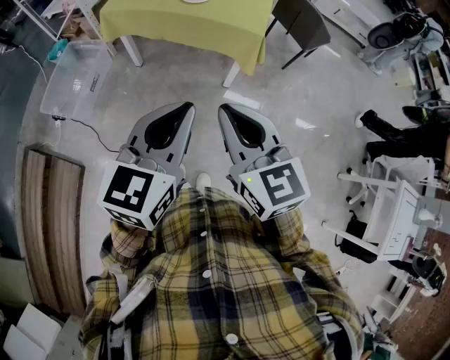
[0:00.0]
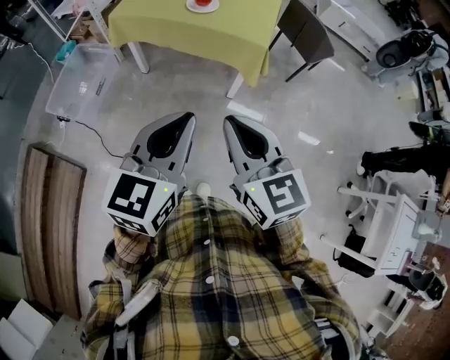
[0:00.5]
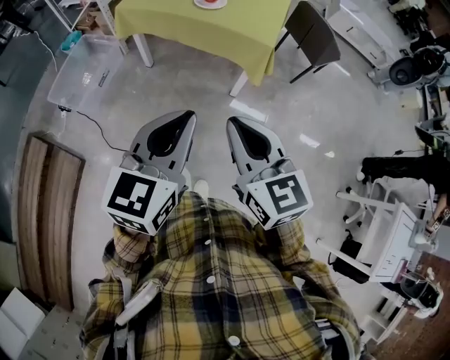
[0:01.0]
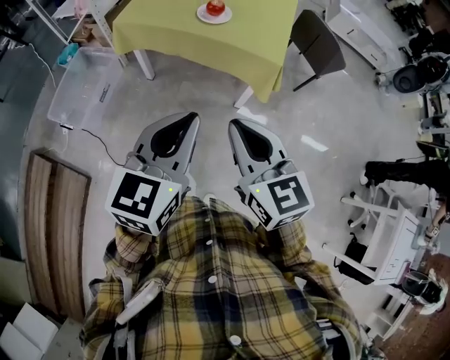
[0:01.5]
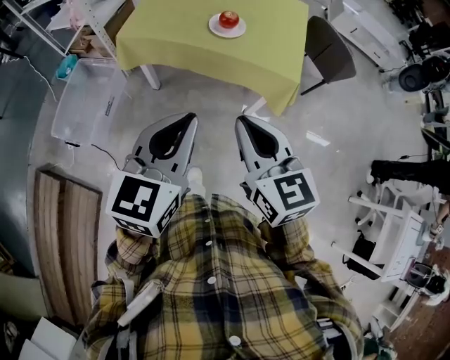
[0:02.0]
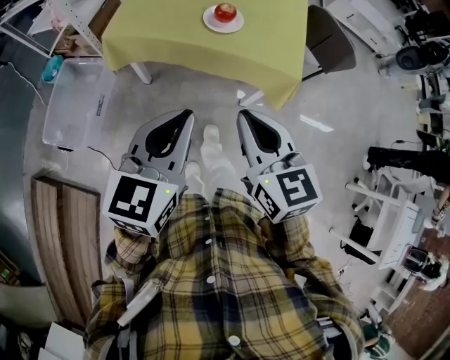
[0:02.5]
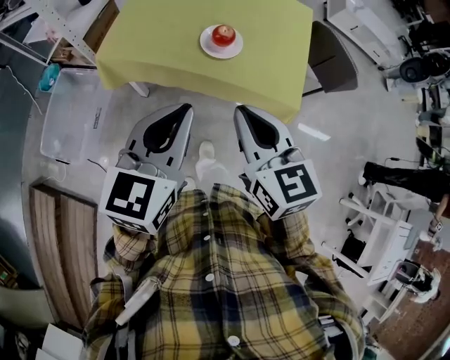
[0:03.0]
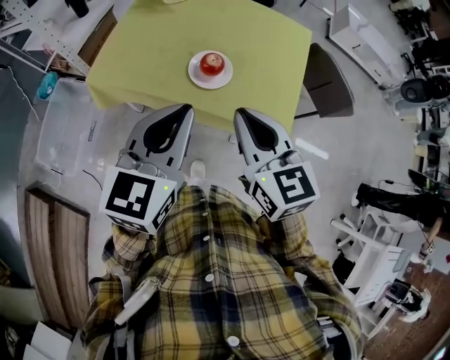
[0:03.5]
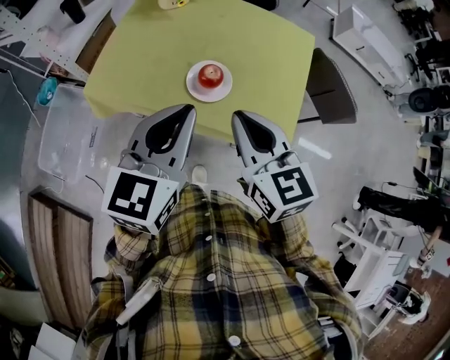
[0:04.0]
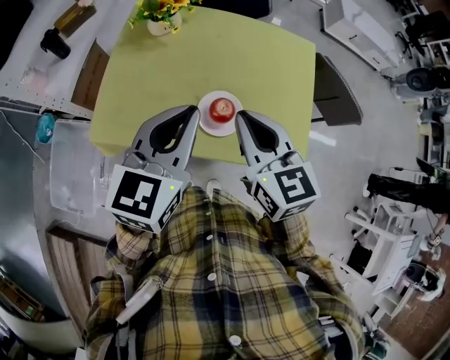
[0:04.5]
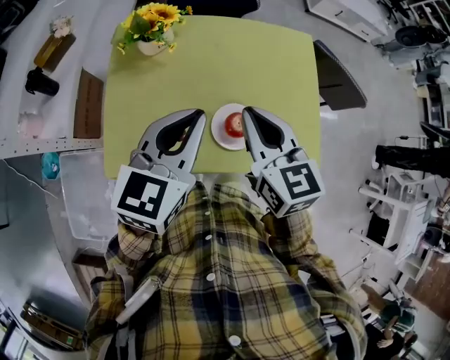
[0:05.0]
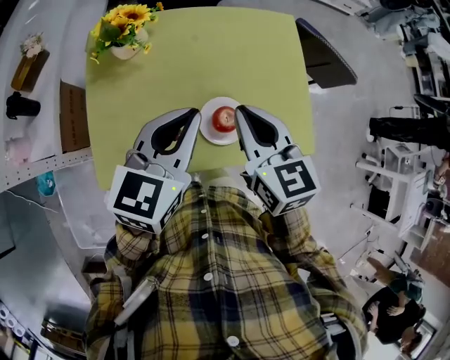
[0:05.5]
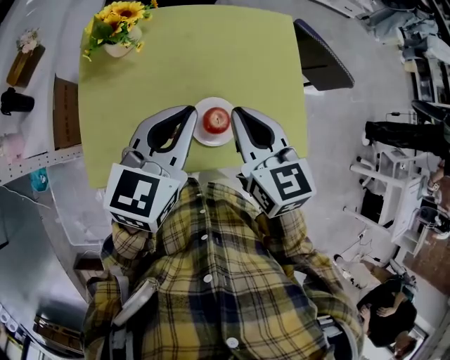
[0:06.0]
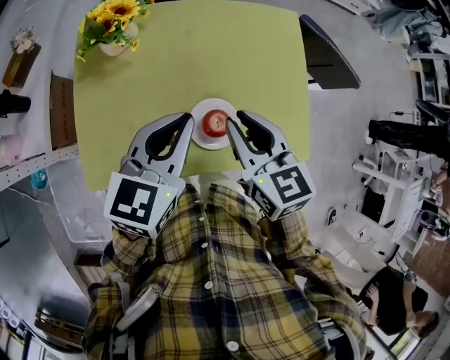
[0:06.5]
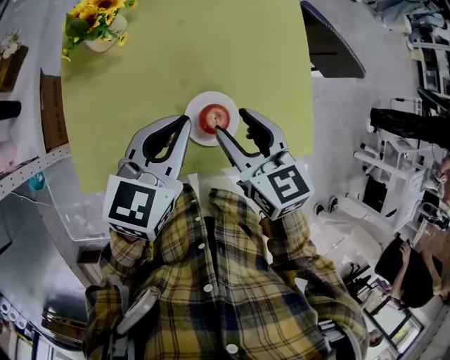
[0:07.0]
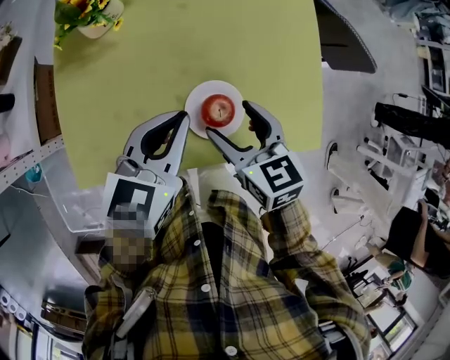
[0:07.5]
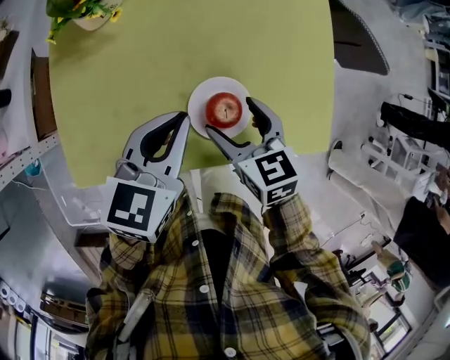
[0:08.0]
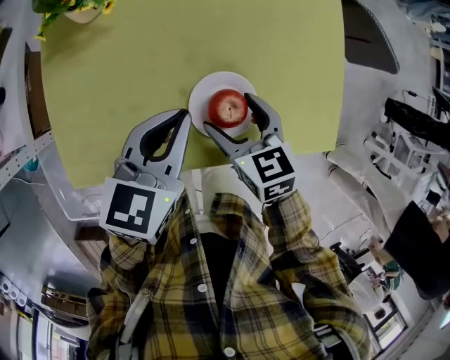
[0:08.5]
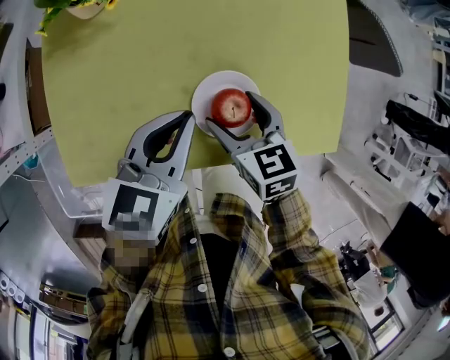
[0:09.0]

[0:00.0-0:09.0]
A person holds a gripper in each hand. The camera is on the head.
0:00.0 to 0:02.0: The two grippers go about 25 cm forward and to the left.
0:02.0 to 0:04.5: Both grippers are carried forward, roughly 50 cm.
0:04.5 to 0:07.0: The grippers both shift downward and forward by roughly 15 cm. The left gripper changes its angle by approximately 20 degrees; the right gripper opens up.
0:07.0 to 0:09.0: The right gripper shifts about 15 cm downward, and opens. The left gripper shifts roughly 10 cm downward.

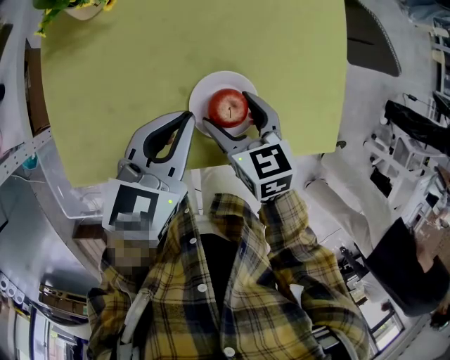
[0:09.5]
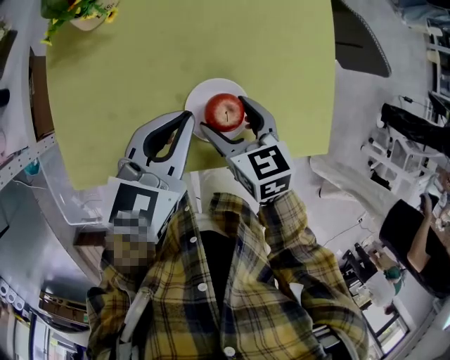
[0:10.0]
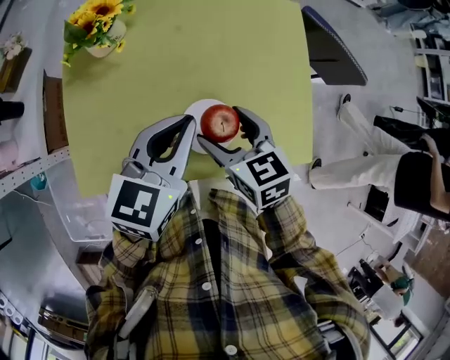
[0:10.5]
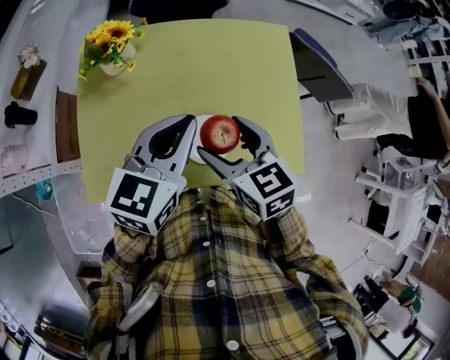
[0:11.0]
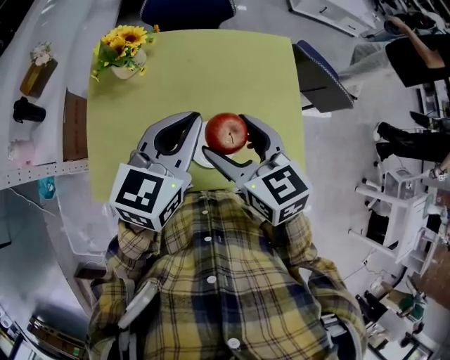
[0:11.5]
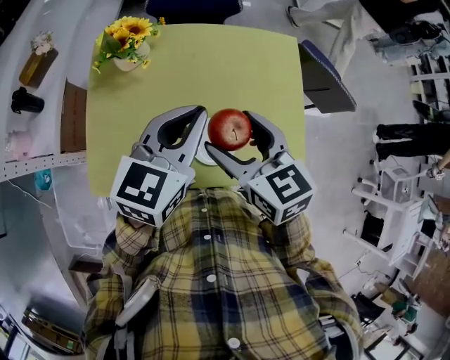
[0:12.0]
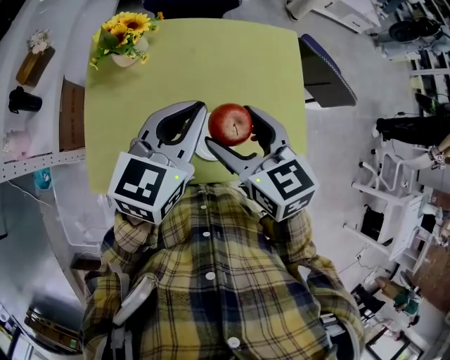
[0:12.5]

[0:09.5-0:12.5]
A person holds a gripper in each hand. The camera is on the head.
0:09.5 to 0:11.0: Both grippers move upward, roughly 15 cm.
0:11.0 to 0:12.5: The right gripper shifts roughly 5 cm upward.

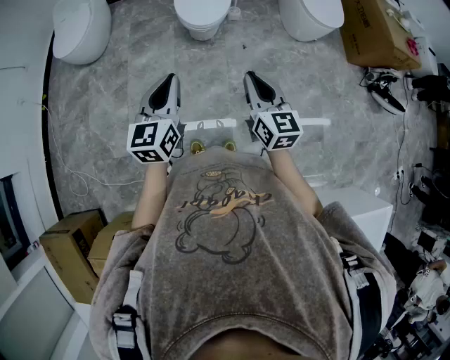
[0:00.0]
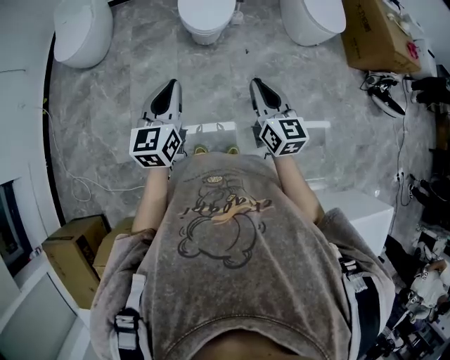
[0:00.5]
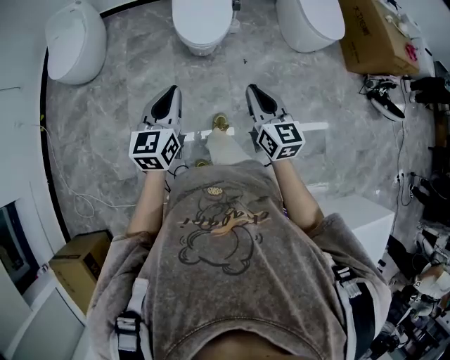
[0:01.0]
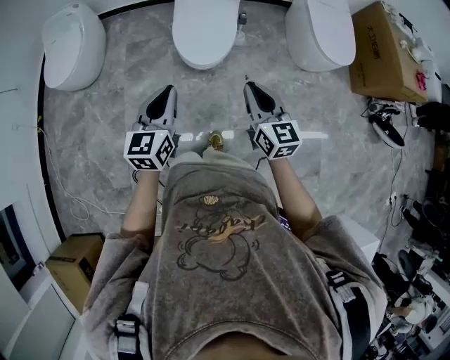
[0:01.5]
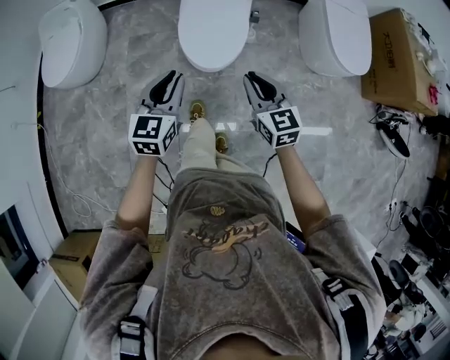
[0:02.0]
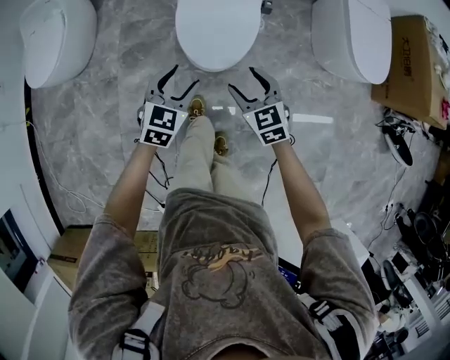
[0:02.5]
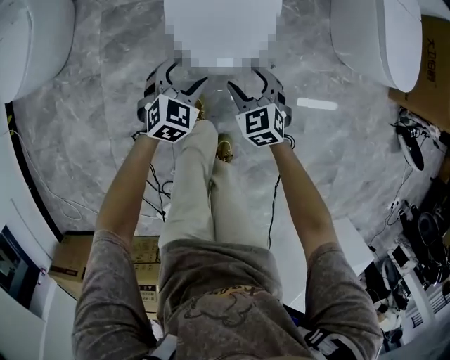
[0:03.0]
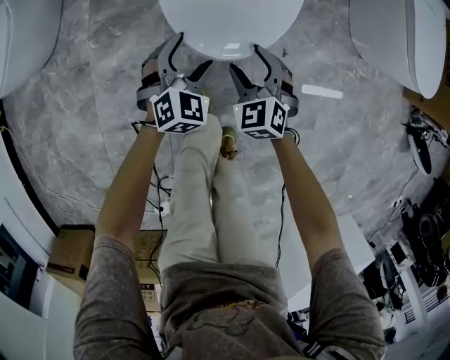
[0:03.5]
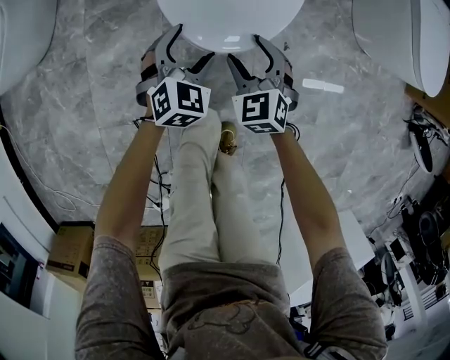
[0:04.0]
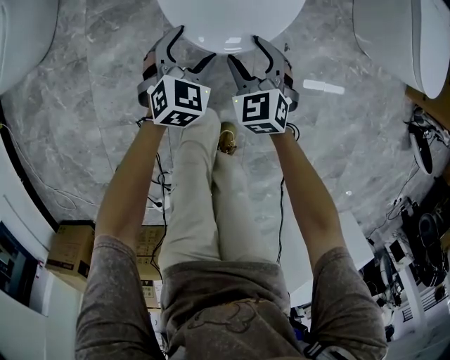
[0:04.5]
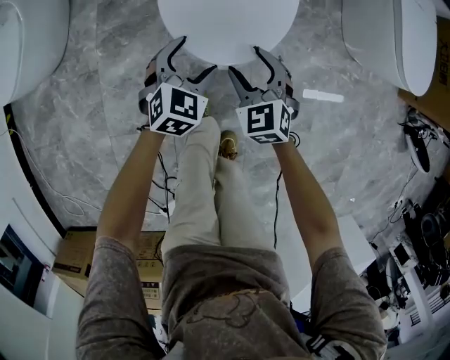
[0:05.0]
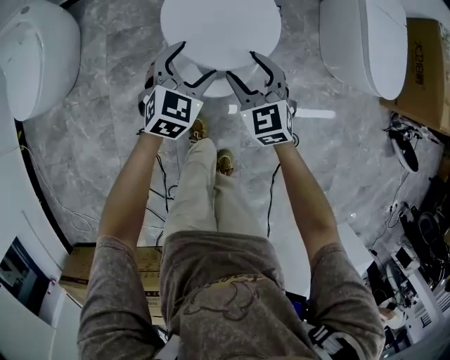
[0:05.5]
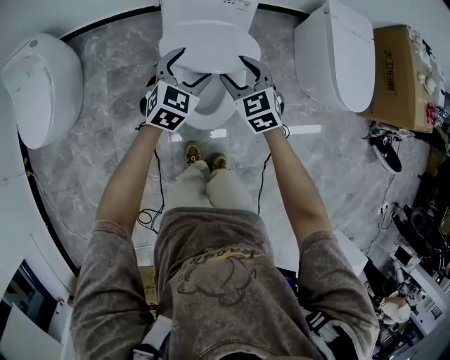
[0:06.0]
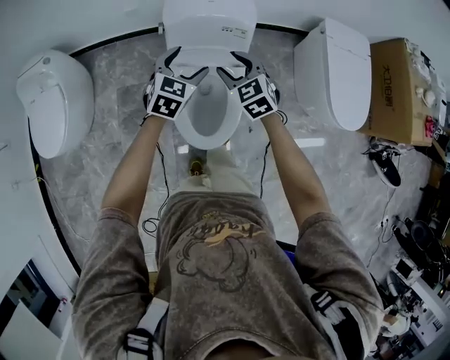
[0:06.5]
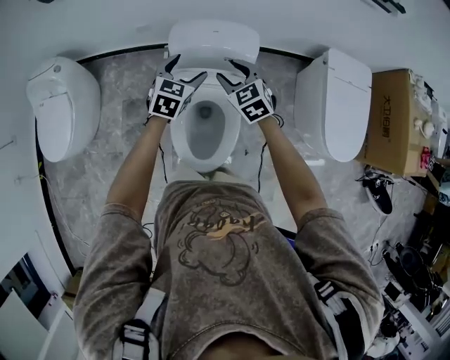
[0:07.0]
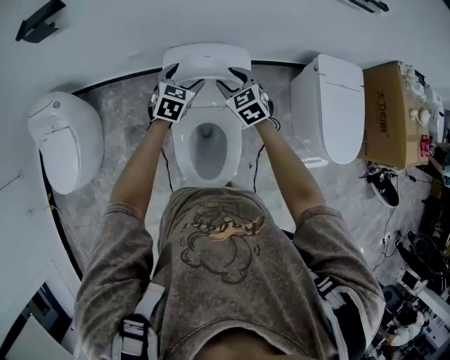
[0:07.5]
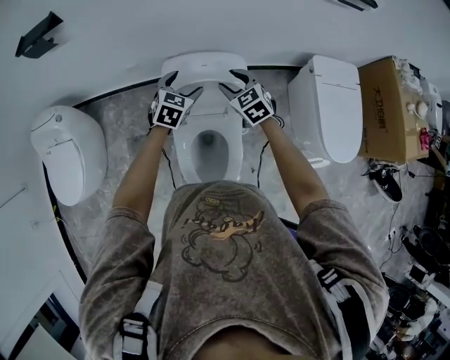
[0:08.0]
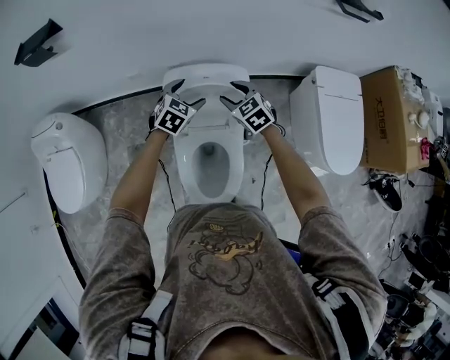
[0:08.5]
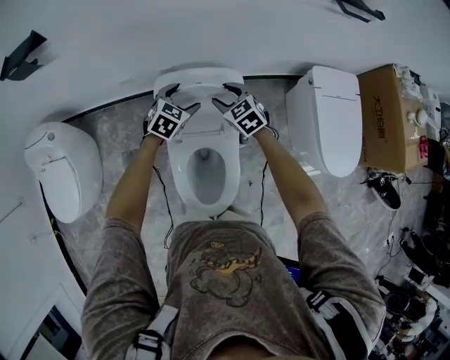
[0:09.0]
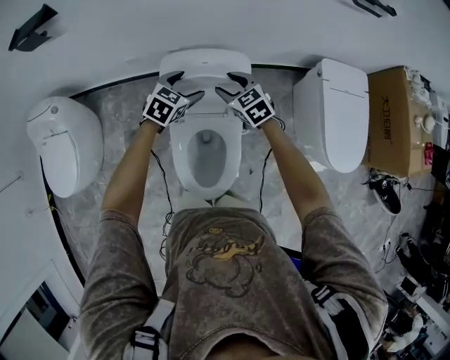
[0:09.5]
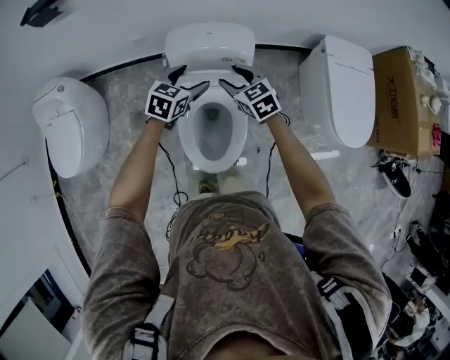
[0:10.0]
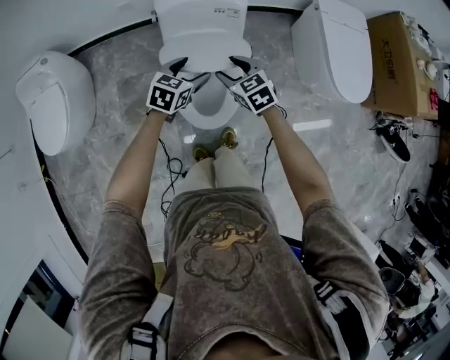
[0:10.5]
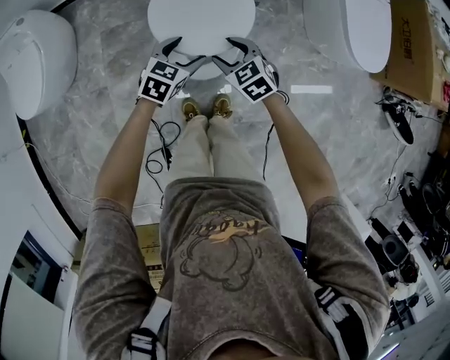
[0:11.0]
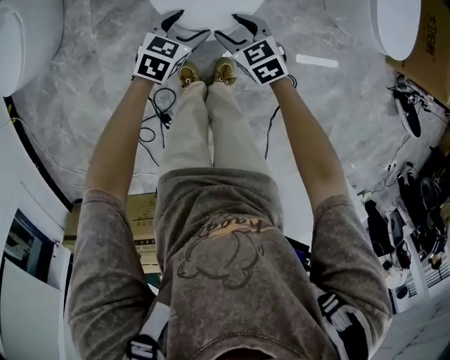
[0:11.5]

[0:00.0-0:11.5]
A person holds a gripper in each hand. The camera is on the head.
0:00.0 to 0:02.0: Both grippers move forward, roughly 40 cm.
0:02.0 to 0:04.0: The two grippers go roughly 50 cm downward. The left gripper changes its angle by approximately 30 degrees, and opens; the right gripper turns by some 30 degrees, and opens its fingers.
0:04.0 to 0:06.0: Both grippers move upward and forward, some 40 cm.
0:06.0 to 0:07.5: Both grippers move forward, approximately 25 cm.
0:09.5 to 0:11.5: The two grippers travel together, backward, roughly 40 cm. Both grippers travel together downward, about 25 cm.

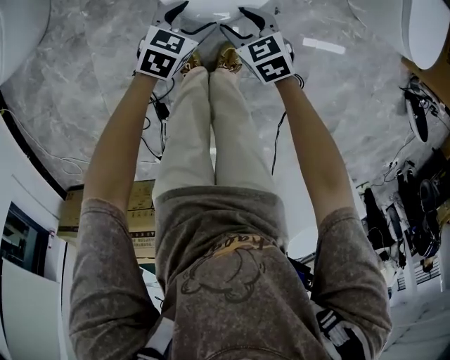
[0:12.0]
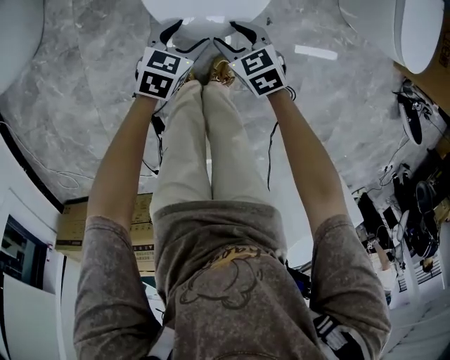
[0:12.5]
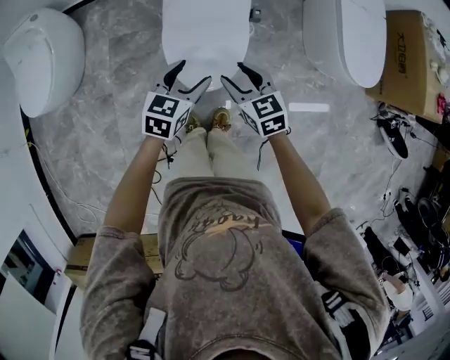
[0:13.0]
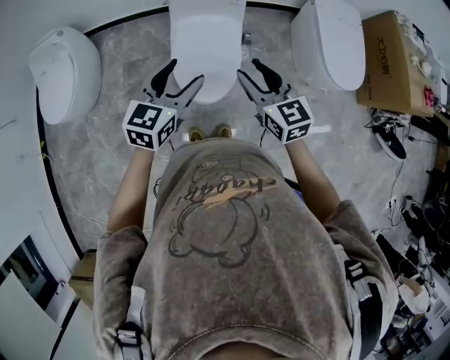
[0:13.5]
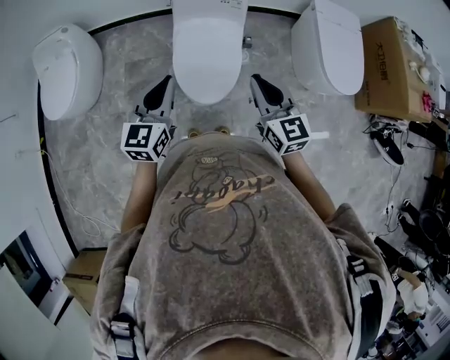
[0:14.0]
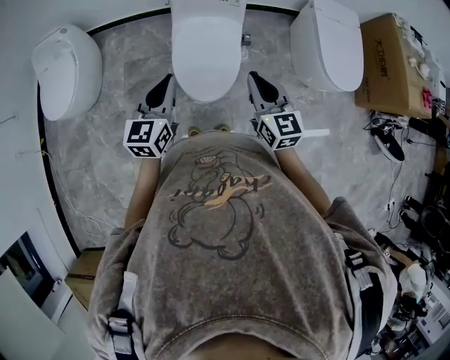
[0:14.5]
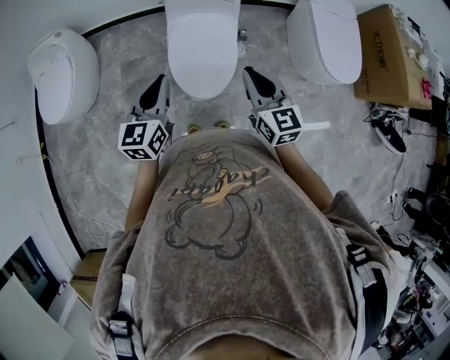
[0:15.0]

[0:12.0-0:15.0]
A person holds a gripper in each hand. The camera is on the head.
0:12.0 to 0:13.5: The two grippers go about 50 cm upward. The left gripper turns by roughly 30 degrees. The right gripper angles its fingers upward, by roughly 30 degrees.
0:13.5 to 0:15.0: The left gripper is displaced to the left by approximately 5 cm, and closes up. The right gripper closes up.
